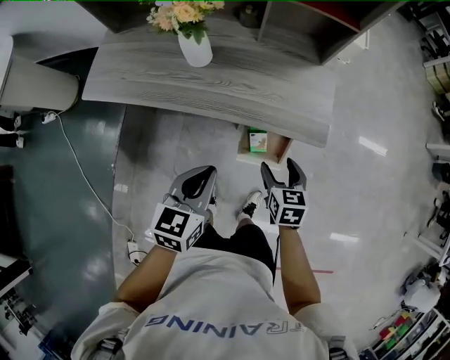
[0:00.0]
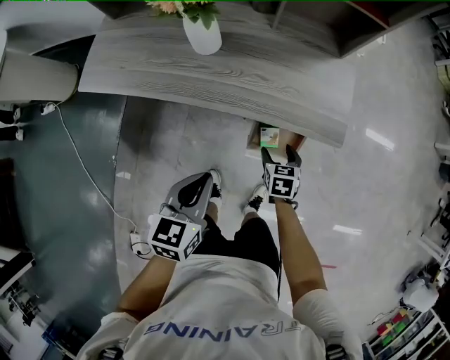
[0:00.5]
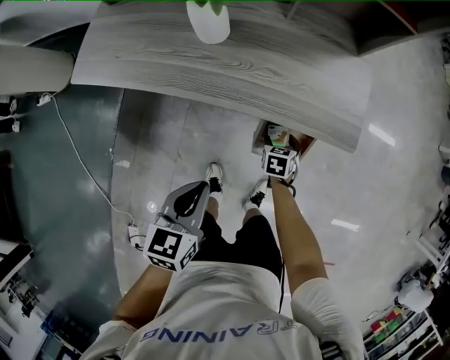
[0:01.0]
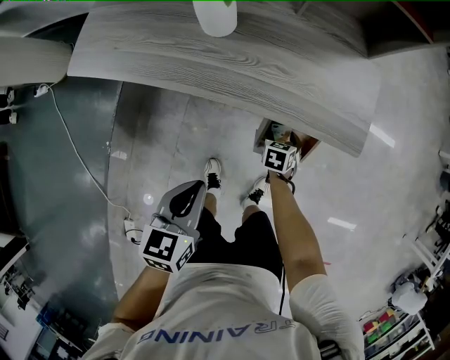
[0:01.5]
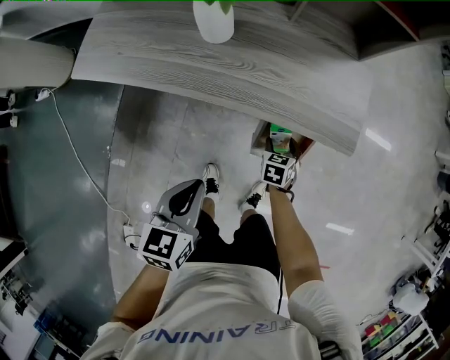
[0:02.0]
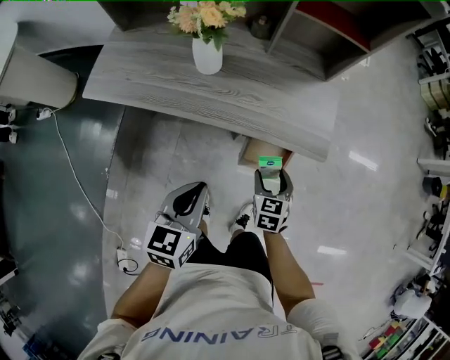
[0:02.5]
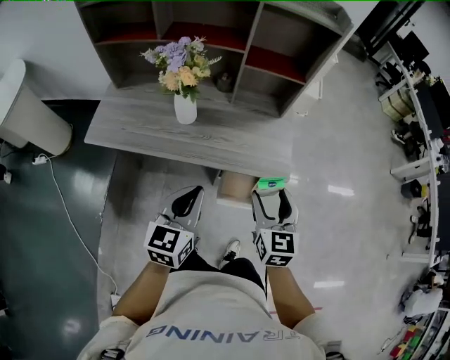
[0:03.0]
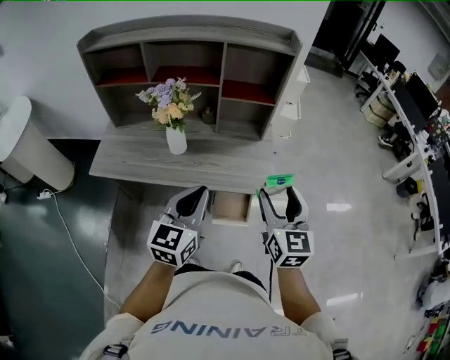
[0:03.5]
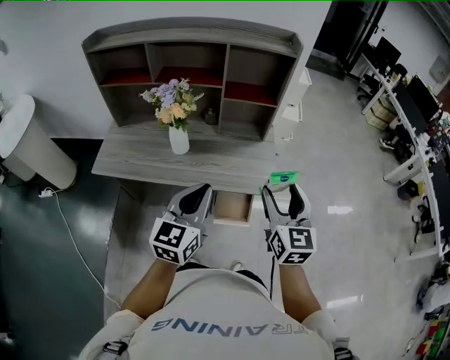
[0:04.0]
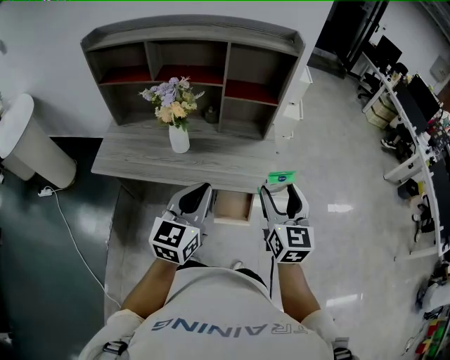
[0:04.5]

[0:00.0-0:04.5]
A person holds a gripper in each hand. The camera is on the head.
0:00.0 to 0:02.0: The right gripper moves downward, approximately 20 cm, while the left gripper goes roughly 10 cm downward and to the left.
0:02.0 to 0:04.5: The left gripper shifts approximately 30 cm upward, and points its fingers approximately 30 degrees further upward, while the right gripper travels upward by about 50 cm, and tips its fingers upward by some 50 degrees.

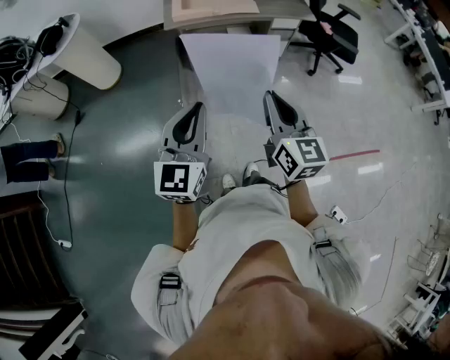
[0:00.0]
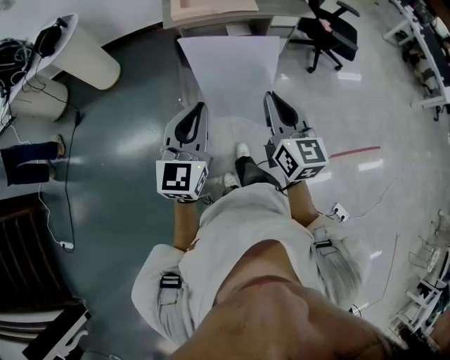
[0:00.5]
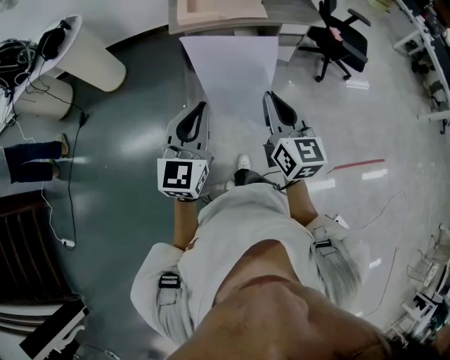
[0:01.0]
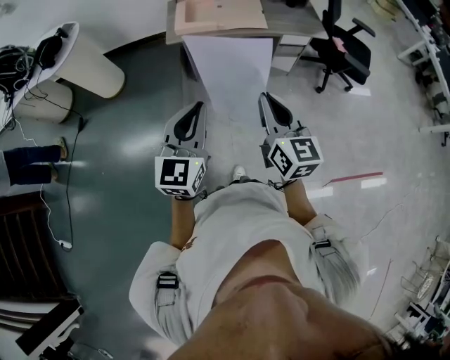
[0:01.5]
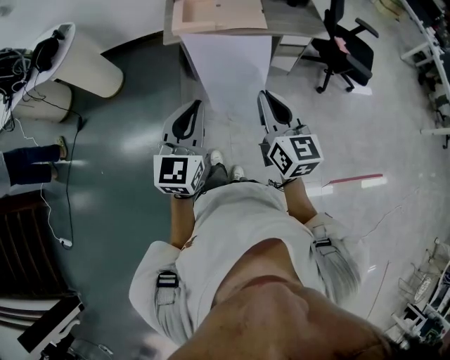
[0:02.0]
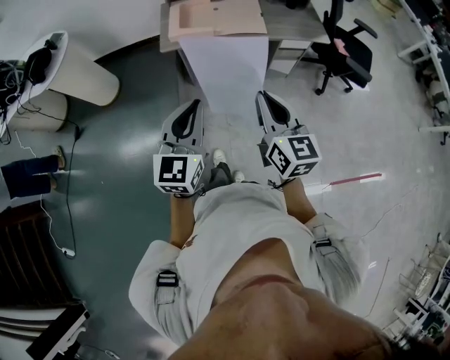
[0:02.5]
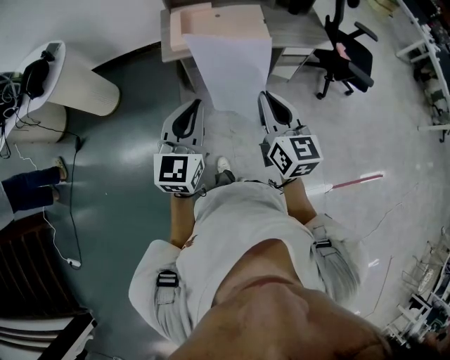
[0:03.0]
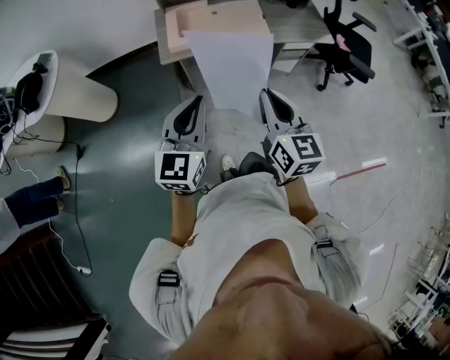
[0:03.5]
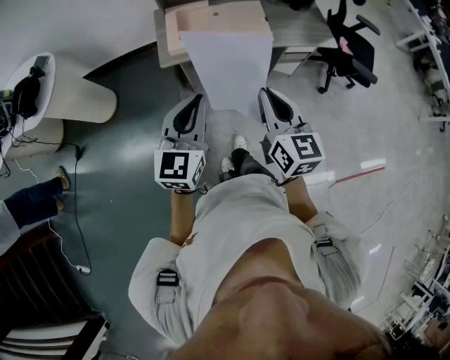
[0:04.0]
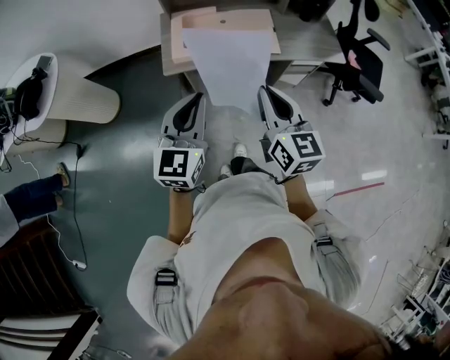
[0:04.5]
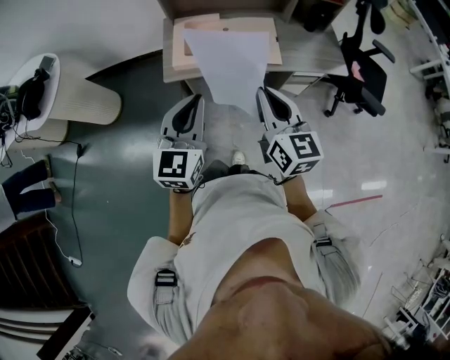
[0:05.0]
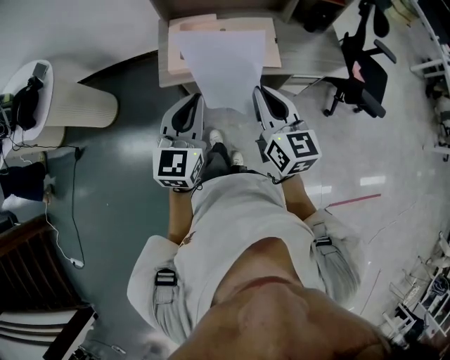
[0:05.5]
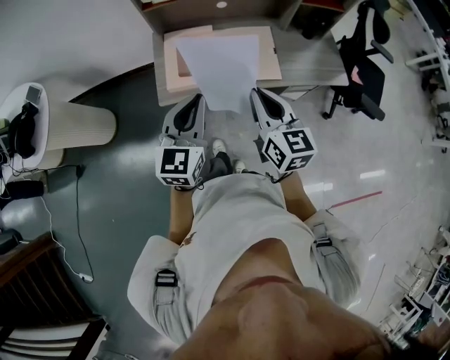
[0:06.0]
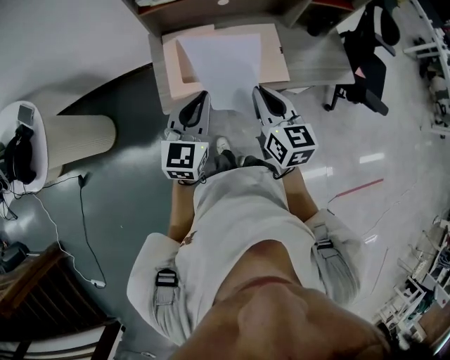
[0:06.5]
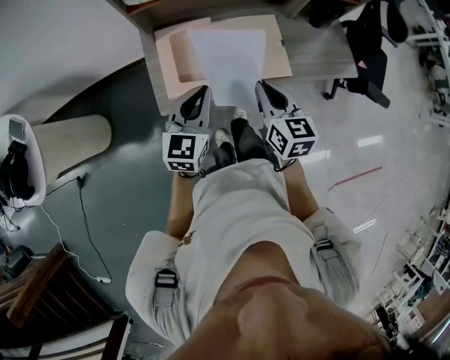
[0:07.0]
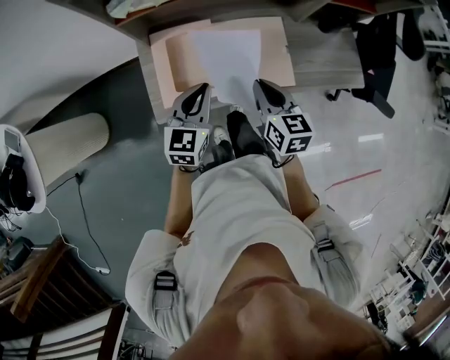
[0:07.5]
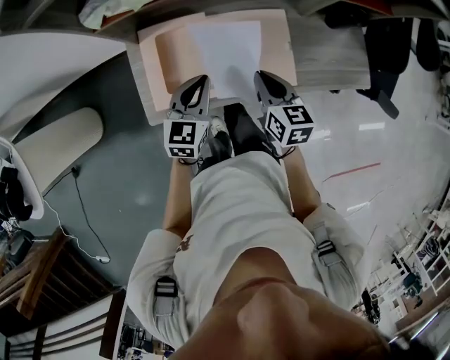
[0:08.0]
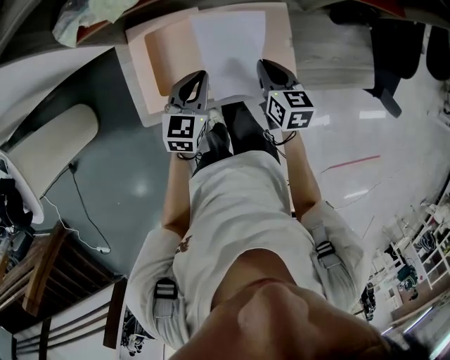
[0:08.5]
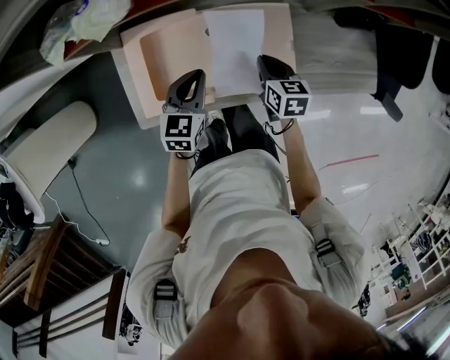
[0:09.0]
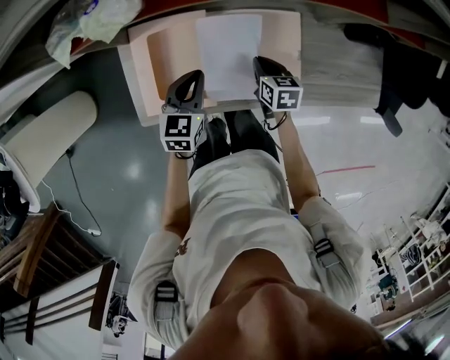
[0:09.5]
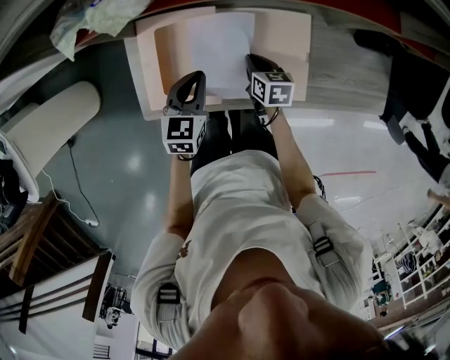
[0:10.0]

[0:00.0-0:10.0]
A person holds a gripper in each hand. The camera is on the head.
0:00.0 to 0:02.0: Both grippers move forward, some 20 cm.
0:02.0 to 0:04.0: The left gripper heads forward, covering approximately 20 cm, while the right gripper shifts about 20 cm forward and to the left.
0:04.0 to 0:06.0: Both grippers move forward, roughly 25 cm.
0:06.0 to 0:08.0: The grippers both shift forward and downward by approximately 30 cm. The right gripper changes its angle by approximately 20 degrees.
0:08.0 to 0:10.0: The right gripper travels downward and forward by roughly 20 cm, while the left gripper heads downward and forward, covering roughly 10 cm.

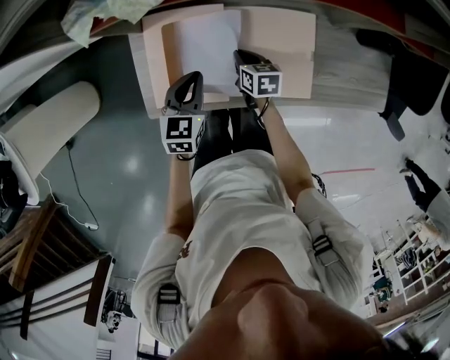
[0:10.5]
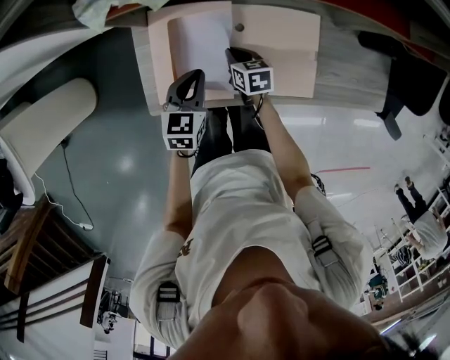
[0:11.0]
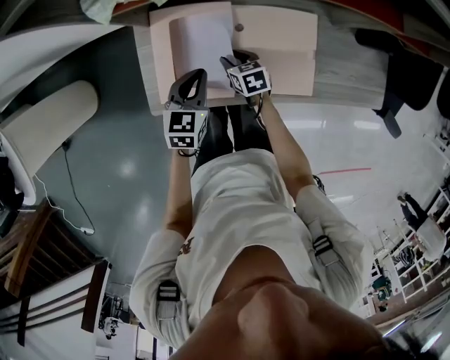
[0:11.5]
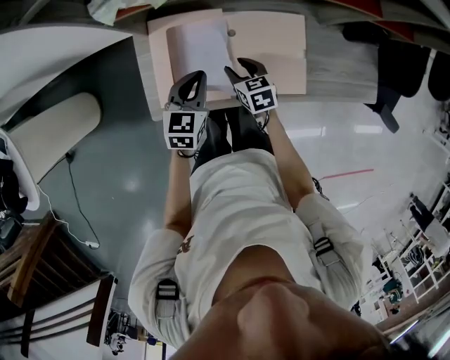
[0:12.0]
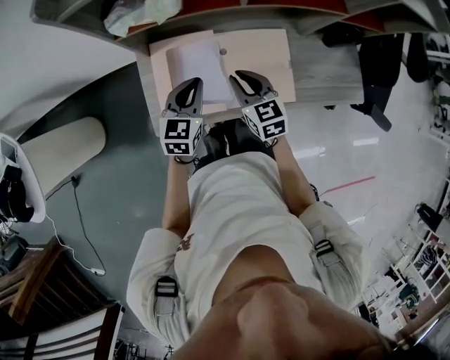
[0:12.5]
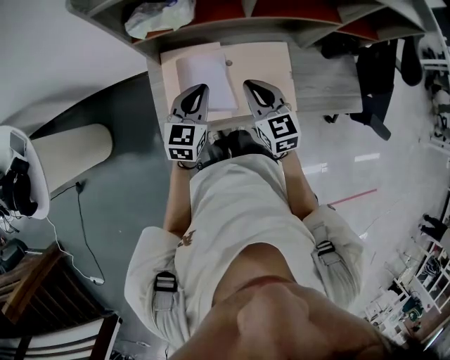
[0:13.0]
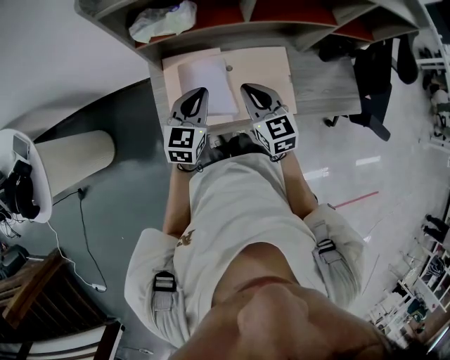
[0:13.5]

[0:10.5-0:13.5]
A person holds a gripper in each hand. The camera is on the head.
0:10.5 to 0:12.0: The right gripper travels upward by some 5 cm, and opens up.
0:12.0 to 0:13.5: The left gripper moves upward, approximately 10 cm, while the right gripper heads upward, covering some 20 cm, rotates approximately 30 degrees, and closes its fingers.

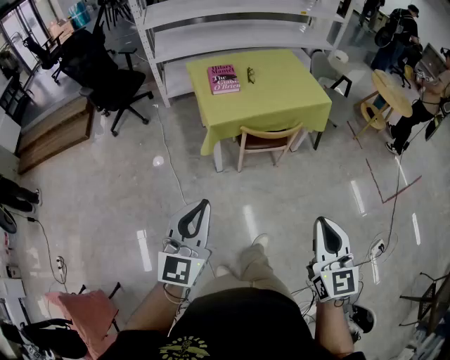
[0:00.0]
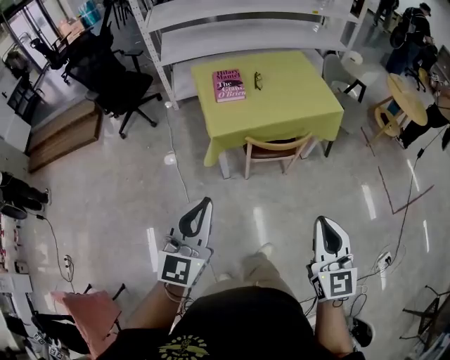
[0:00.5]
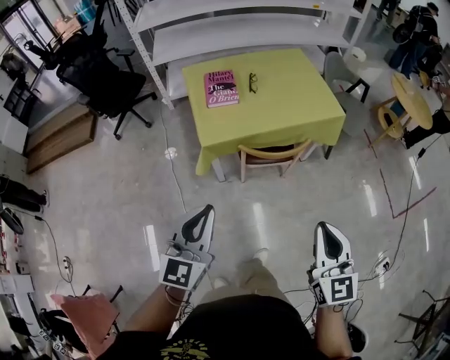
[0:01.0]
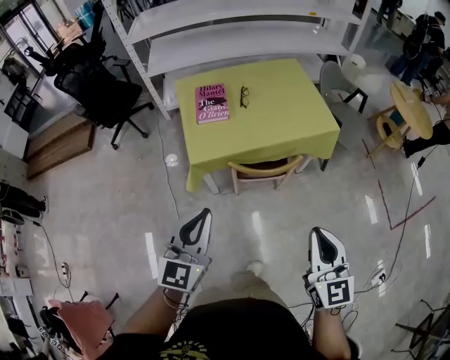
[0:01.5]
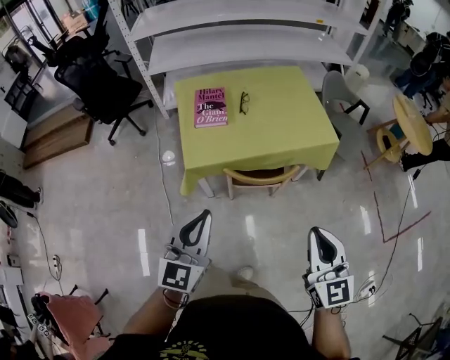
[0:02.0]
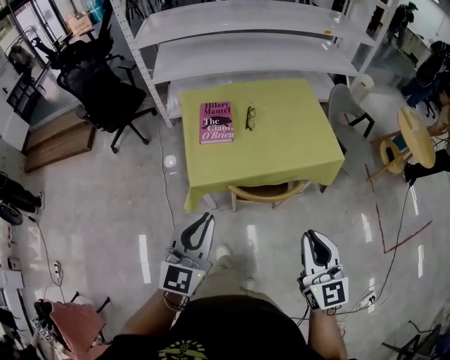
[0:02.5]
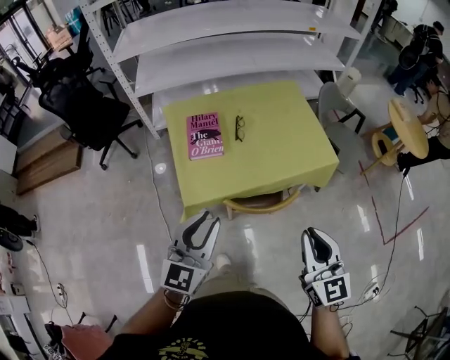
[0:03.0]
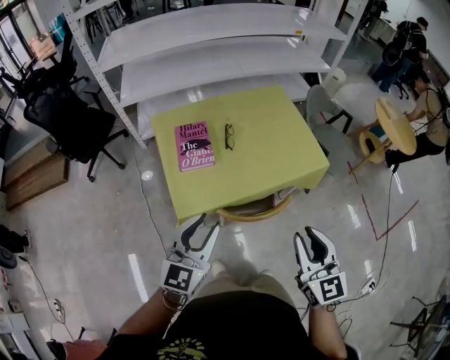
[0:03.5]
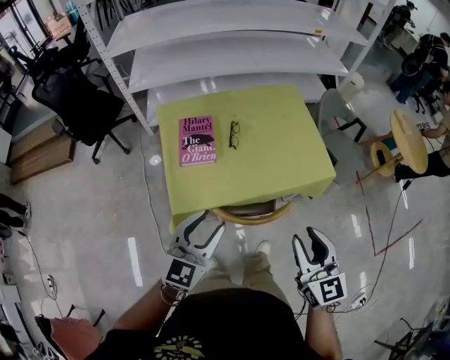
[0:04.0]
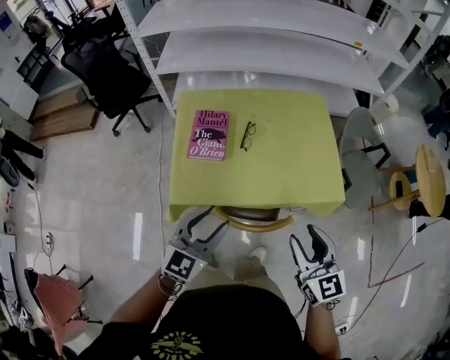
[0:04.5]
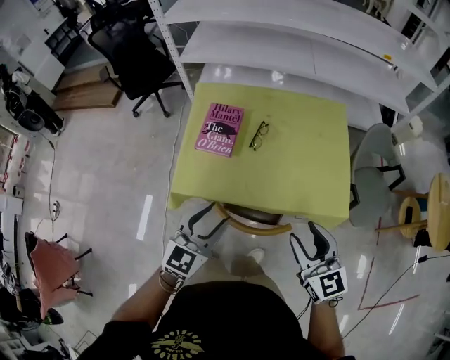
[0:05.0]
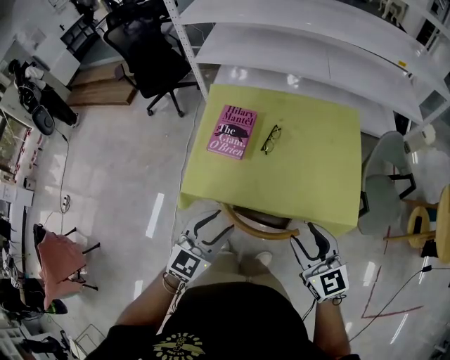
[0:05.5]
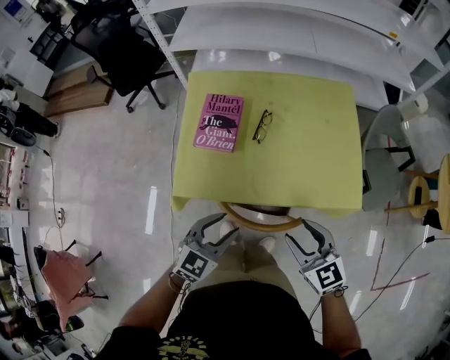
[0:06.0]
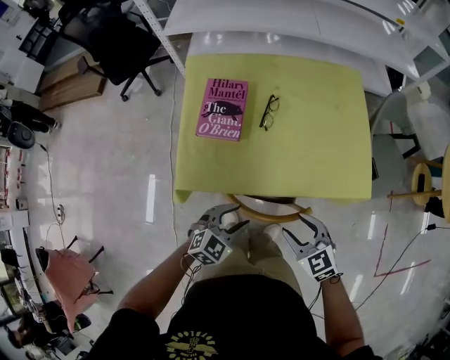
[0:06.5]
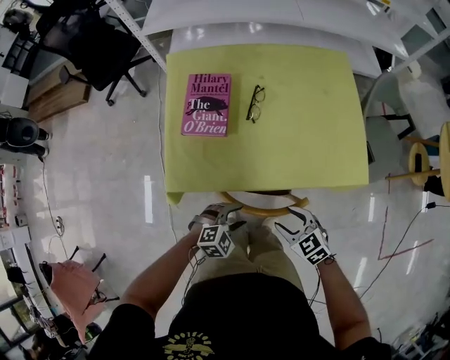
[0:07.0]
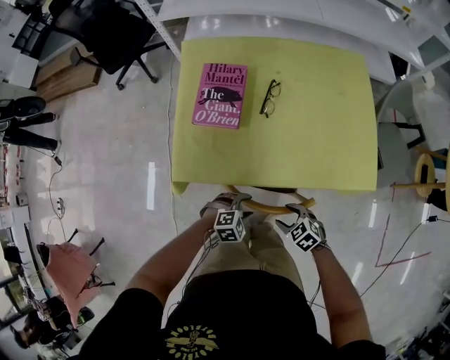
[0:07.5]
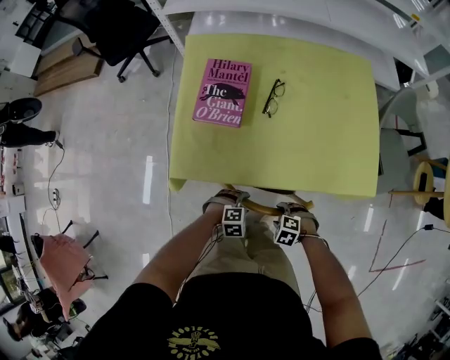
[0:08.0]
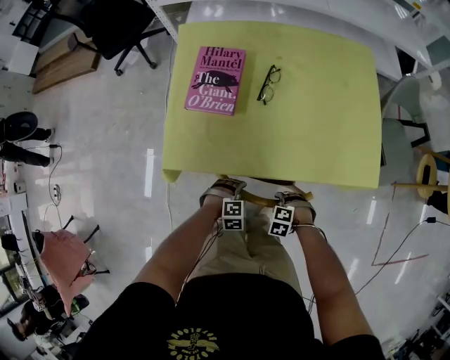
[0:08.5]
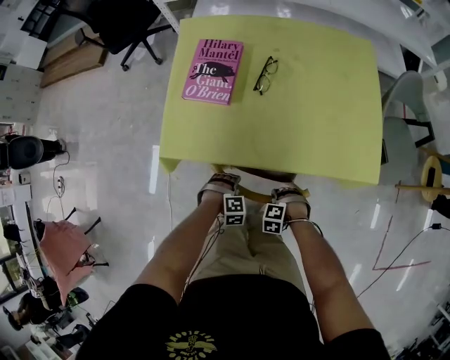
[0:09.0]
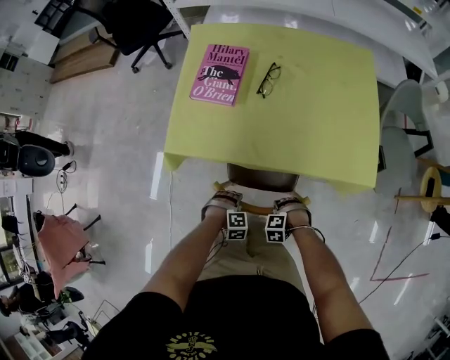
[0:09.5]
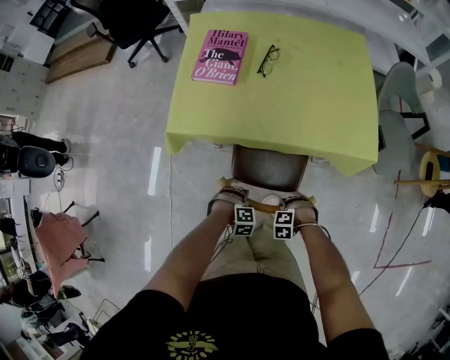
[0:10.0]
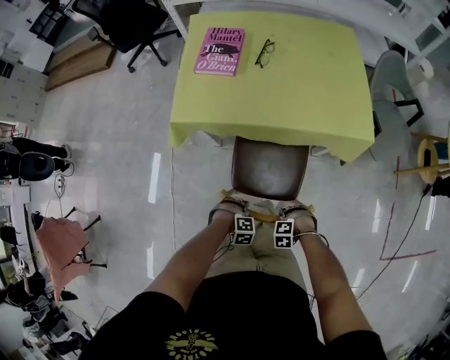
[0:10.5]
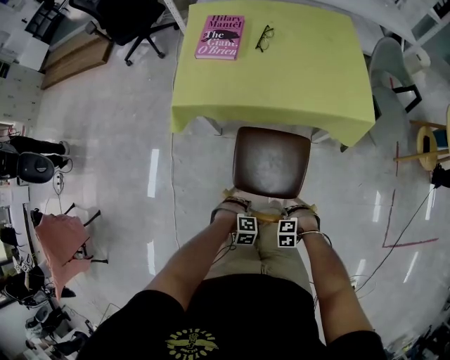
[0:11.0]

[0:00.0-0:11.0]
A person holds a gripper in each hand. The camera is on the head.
0:00.0 to 0:02.0: The grippers both shift forward and to the right by some 30 cm.
0:02.0 to 0:03.5: The two grippers go about 15 cm forward. The left gripper opens its fingers.
0:03.5 to 0:05.5: The right gripper moves about 20 cm, rotates roughly 40 degrees, and opens up. The left gripper ends up some 15 cm from where it was, and swivels about 20 degrees.
0:05.5 to 0:07.5: Both grippers move downward, approximately 35 cm. The left gripper tips its fingers downward by approximately 40 degrees. The right gripper angles its fingers downward, by roughly 40 degrees.
0:07.5 to 0:09.0: Both grippers move downward, about 10 cm. The right gripper rotates around the line of its fingers by approximately 40 degrees, counterclockwise from behind, and closes its fingers, while the left gripper rotates roughly 30 degrees.
0:09.0 to 0:11.0: The left gripper shifts by about 30 cm. The right gripper changes place by some 30 cm.
